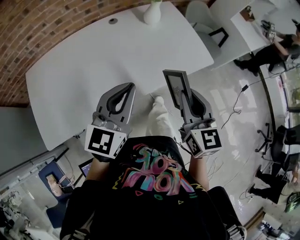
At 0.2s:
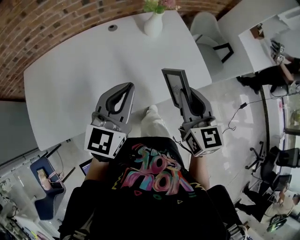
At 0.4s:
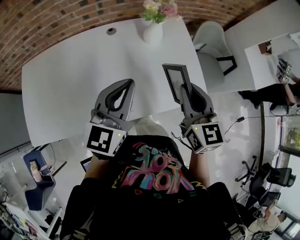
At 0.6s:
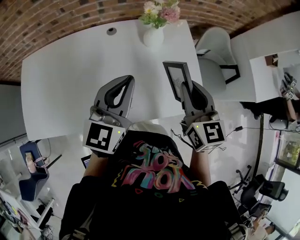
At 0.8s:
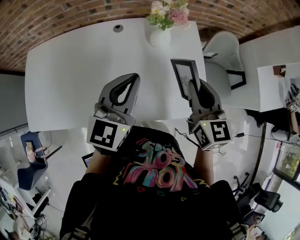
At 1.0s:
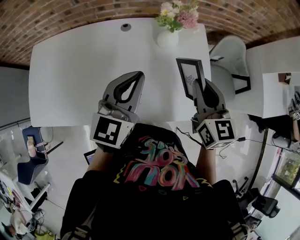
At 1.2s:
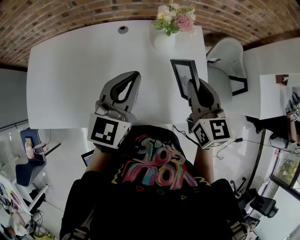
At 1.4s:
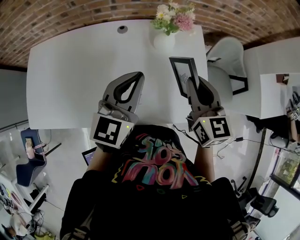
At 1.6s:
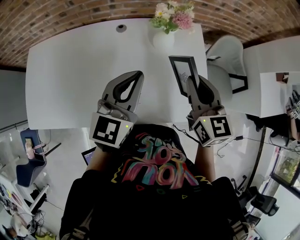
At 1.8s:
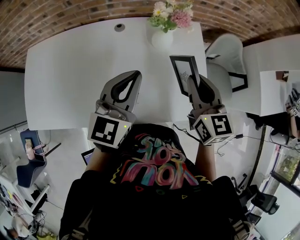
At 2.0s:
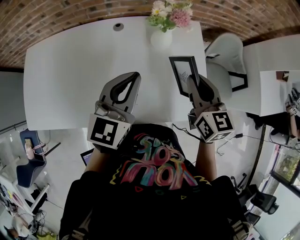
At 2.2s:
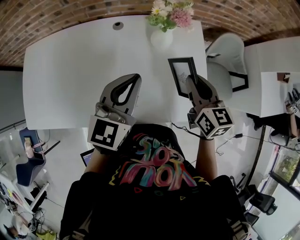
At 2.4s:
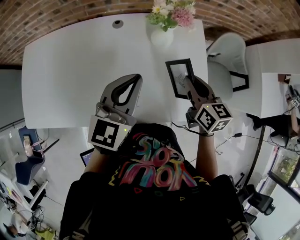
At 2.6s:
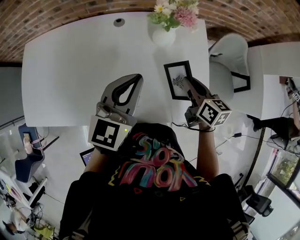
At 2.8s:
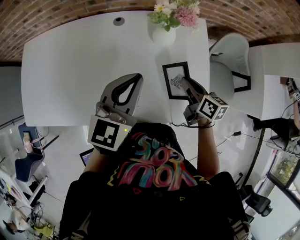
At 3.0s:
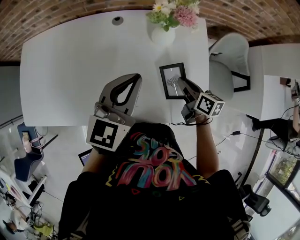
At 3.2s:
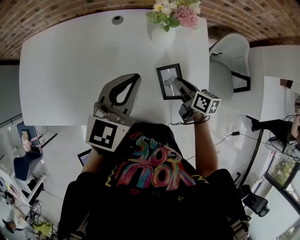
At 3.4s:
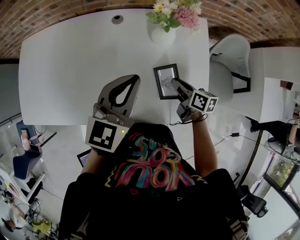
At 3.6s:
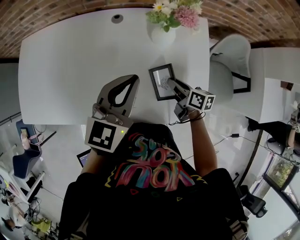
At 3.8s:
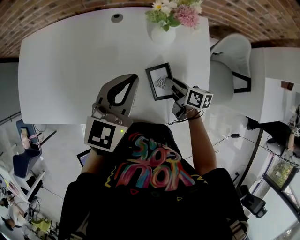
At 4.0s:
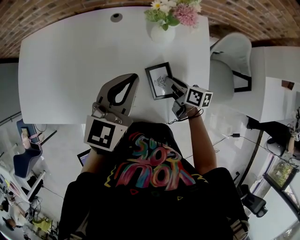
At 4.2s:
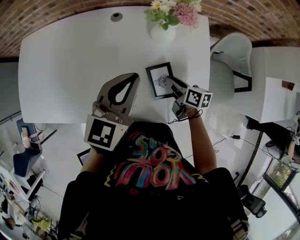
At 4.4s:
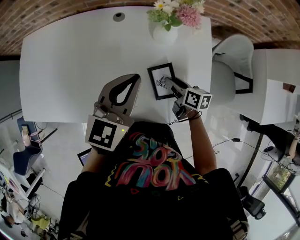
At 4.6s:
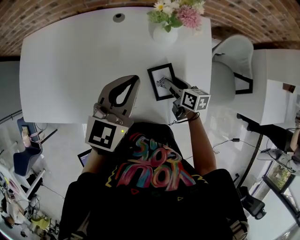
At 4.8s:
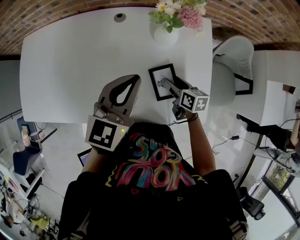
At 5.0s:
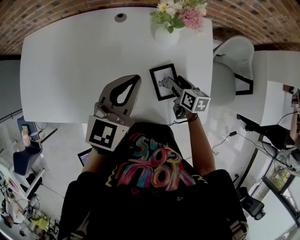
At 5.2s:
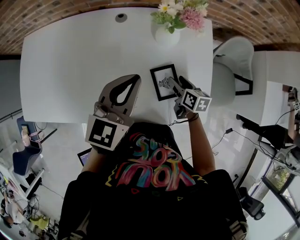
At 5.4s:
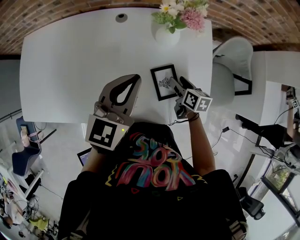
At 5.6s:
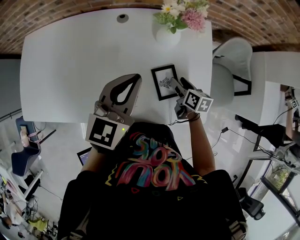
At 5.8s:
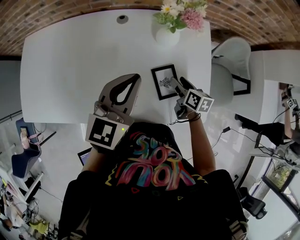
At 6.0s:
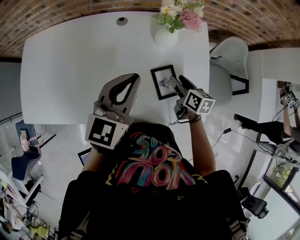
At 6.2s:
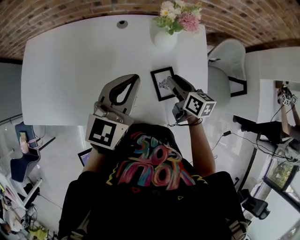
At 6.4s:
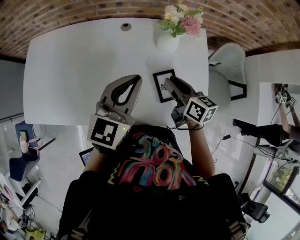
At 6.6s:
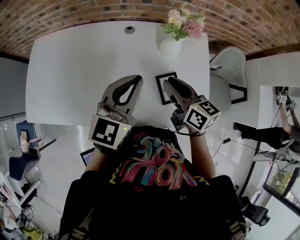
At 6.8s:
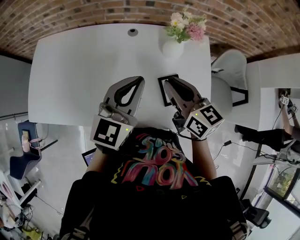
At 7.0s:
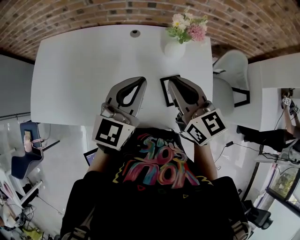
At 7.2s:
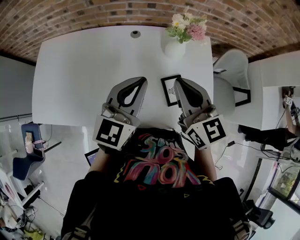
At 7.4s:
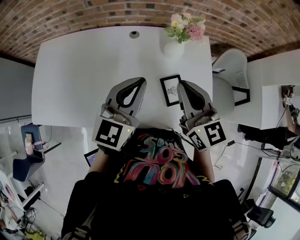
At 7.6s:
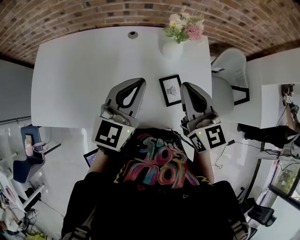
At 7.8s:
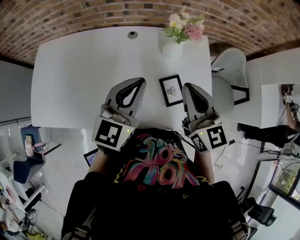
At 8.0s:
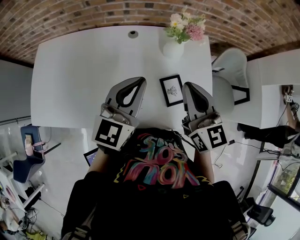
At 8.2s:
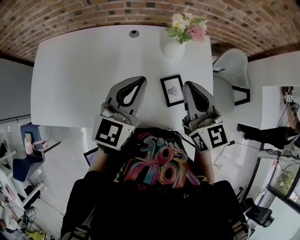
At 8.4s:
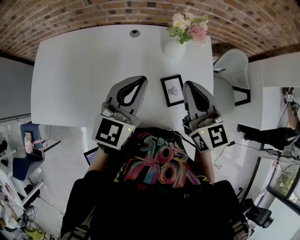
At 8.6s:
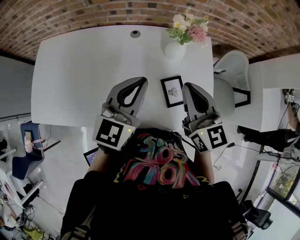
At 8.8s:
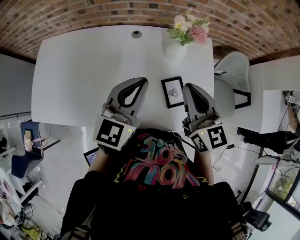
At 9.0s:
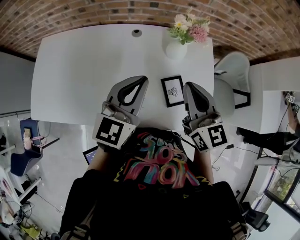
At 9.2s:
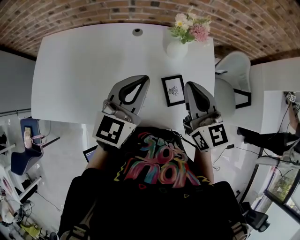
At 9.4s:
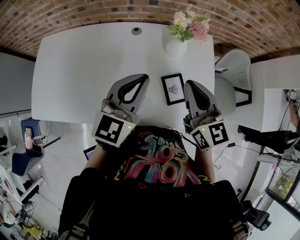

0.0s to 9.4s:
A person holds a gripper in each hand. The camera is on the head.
0.0s to 1.6s: The left gripper ends up approximately 35 cm from where it was, and rotates about 20 degrees. The right gripper ends up roughly 40 cm from where it was, and swivels some 30 degrees.
1.6s to 3.2s: The right gripper is displaced downward by about 20 cm, and changes its angle by roughly 50 degrees, while the left gripper moves some 5 cm.
3.2s to 4.8s: The right gripper moves downward, roughly 5 cm, and opens its fingers.
4.8s to 6.2s: The left gripper shifts by some 5 cm. The right gripper is displaced upward by approximately 10 cm.
6.2s to 7.8s: The right gripper goes approximately 20 cm upward, rotates roughly 40 degrees, and closes.
7.8s to 9.4s: Both grippers stay about where they are.

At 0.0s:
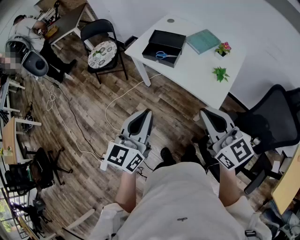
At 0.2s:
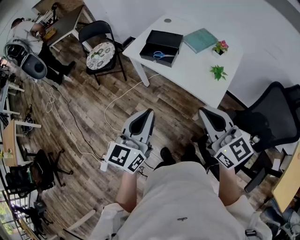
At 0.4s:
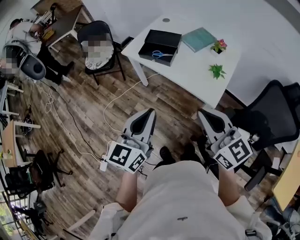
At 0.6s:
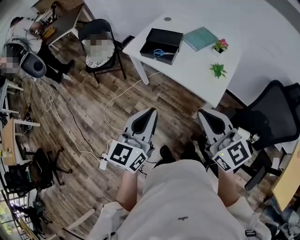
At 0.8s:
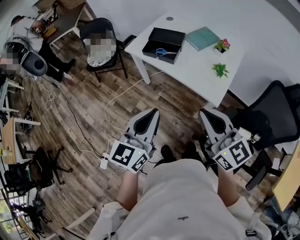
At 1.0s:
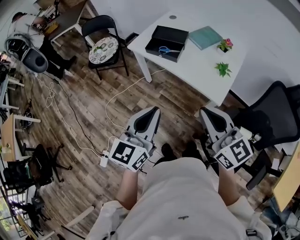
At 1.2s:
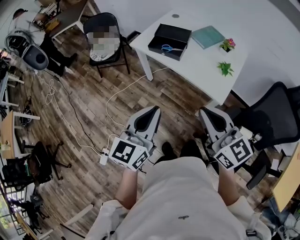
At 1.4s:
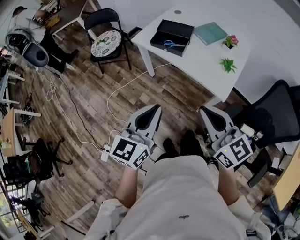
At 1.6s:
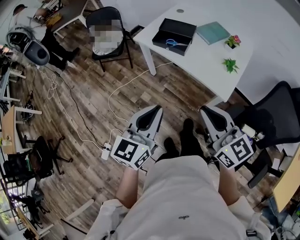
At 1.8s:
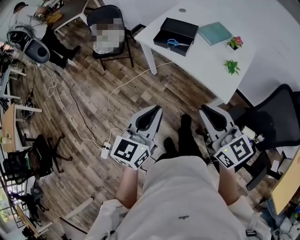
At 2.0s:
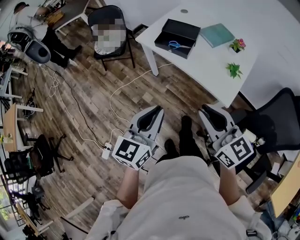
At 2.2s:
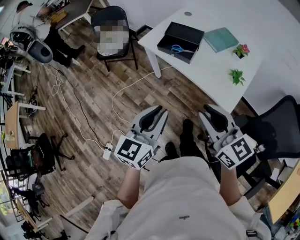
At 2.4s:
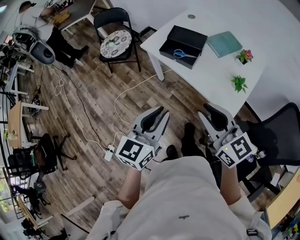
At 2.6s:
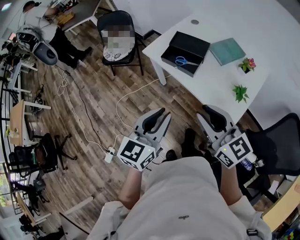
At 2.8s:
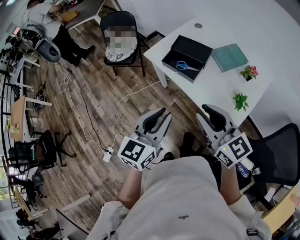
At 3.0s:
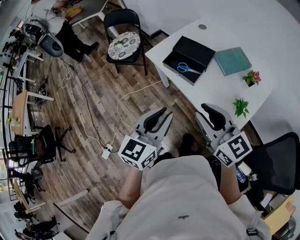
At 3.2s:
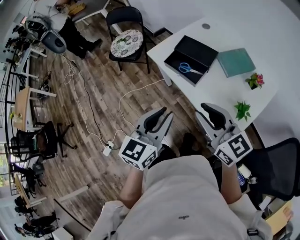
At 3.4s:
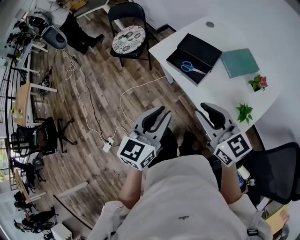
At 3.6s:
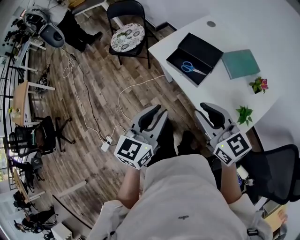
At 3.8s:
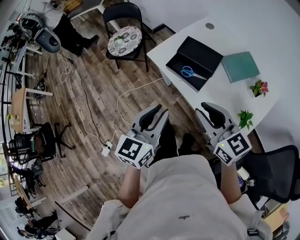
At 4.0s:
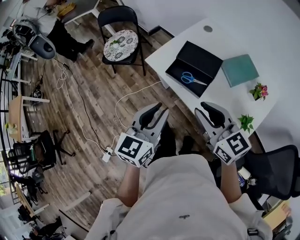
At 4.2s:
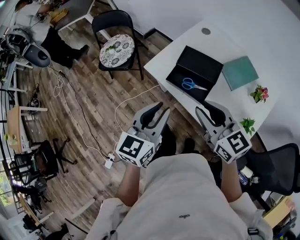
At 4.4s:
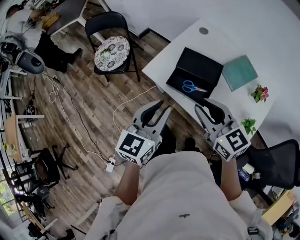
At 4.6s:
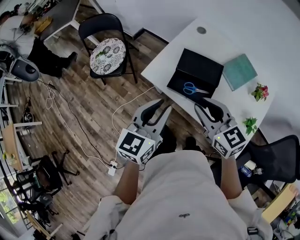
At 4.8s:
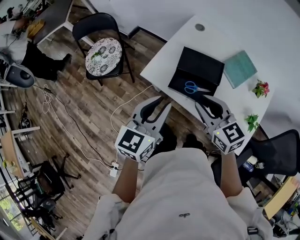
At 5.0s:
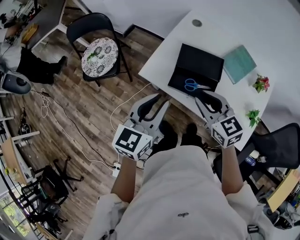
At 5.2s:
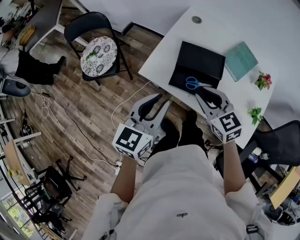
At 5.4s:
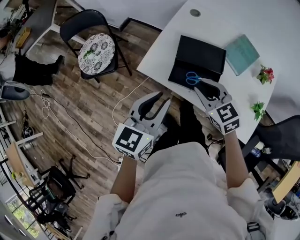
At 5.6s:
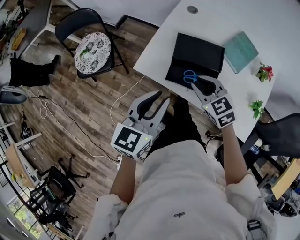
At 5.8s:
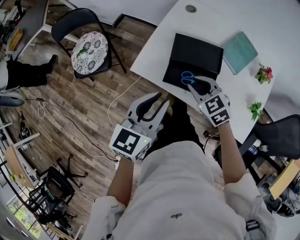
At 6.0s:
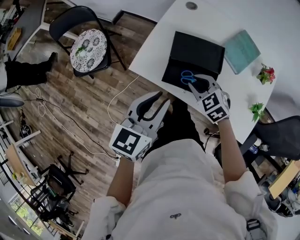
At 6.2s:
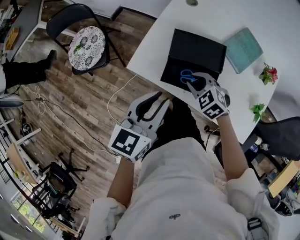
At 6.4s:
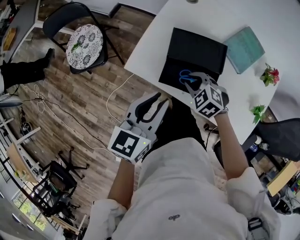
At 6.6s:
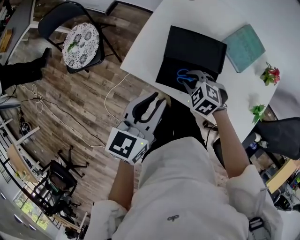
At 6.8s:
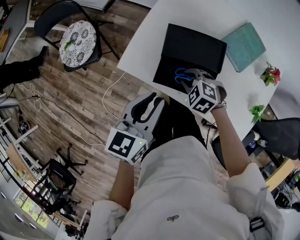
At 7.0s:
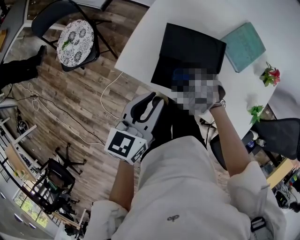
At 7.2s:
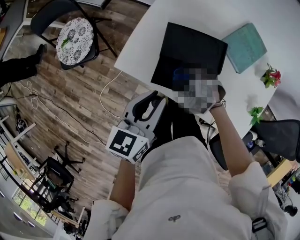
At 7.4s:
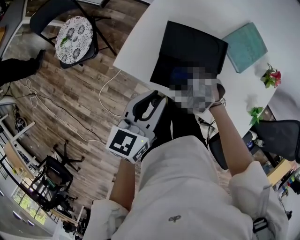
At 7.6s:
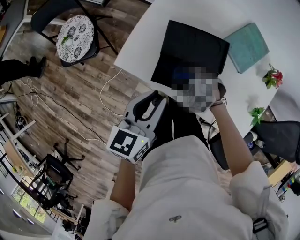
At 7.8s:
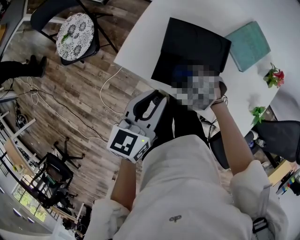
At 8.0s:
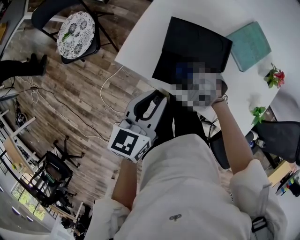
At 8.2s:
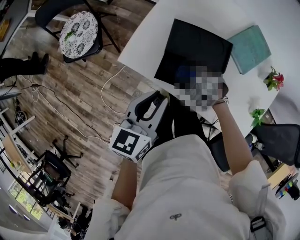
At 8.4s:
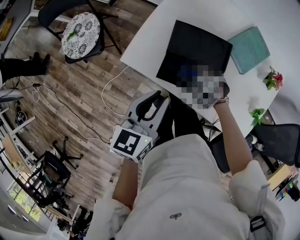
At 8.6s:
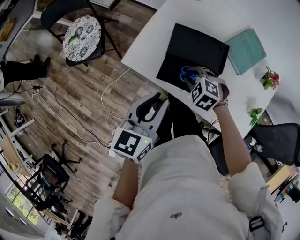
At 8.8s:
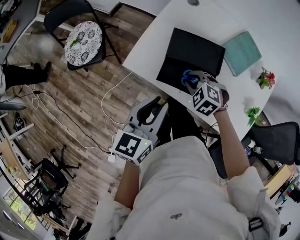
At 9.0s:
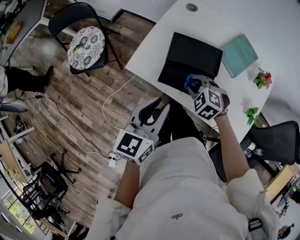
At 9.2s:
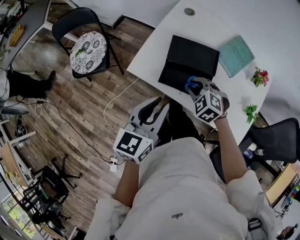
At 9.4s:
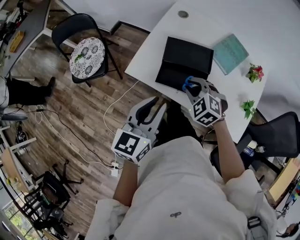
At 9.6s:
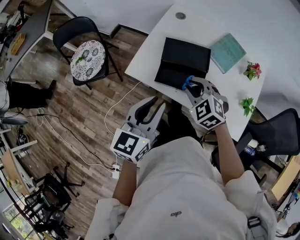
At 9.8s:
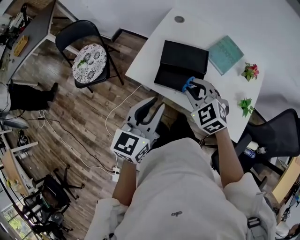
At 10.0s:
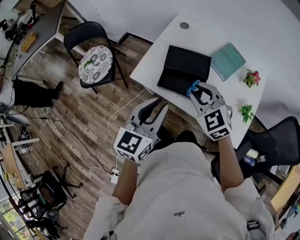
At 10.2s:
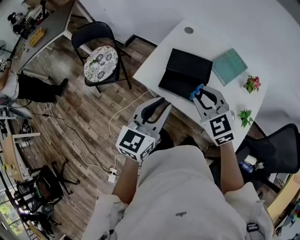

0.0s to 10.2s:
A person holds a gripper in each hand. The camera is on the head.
0.0s to 1.4s: The right gripper travels to the left by approximately 5 cm.
1.4s to 3.0s: The left gripper heads forward and to the right, covering approximately 20 cm. Meanwhile the right gripper shifts approximately 20 cm forward, and opens its fingers.
3.0s to 4.4s: The two grippers go approximately 20 cm forward.
4.4s to 5.8s: The left gripper travels forward and downward by approximately 10 cm, while the right gripper heads downward and forward, covering some 20 cm, and rotates approximately 30 degrees.
5.8s to 7.2s: The left gripper goes about 5 cm downward; the right gripper moves downward, some 15 cm, and turns by about 30 degrees.
7.2s to 8.8s: The right gripper heads upward, covering approximately 5 cm; the left gripper shifts by approximately 5 cm.
8.8s to 10.2s: The right gripper moves upward, approximately 20 cm, and angles its fingers upward, by some 40 degrees; the left gripper moves upward and backward, approximately 10 cm.

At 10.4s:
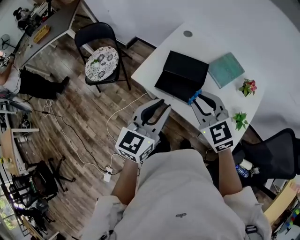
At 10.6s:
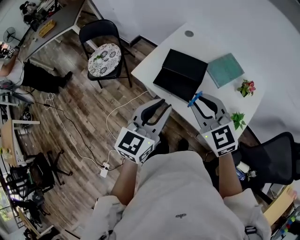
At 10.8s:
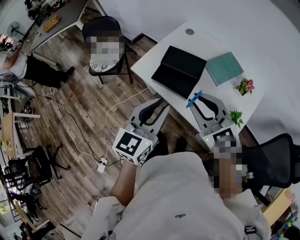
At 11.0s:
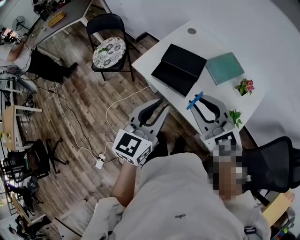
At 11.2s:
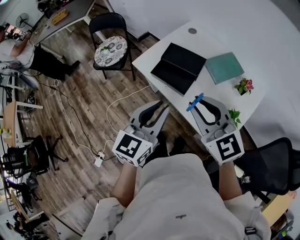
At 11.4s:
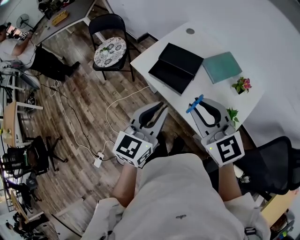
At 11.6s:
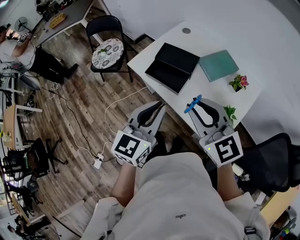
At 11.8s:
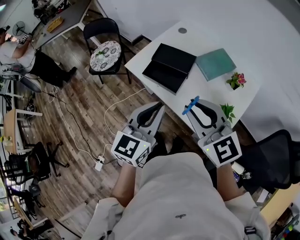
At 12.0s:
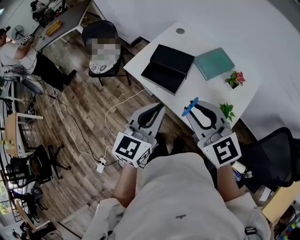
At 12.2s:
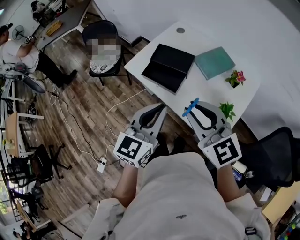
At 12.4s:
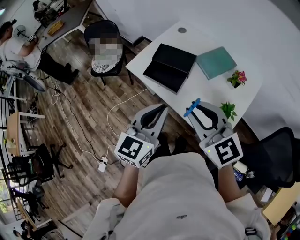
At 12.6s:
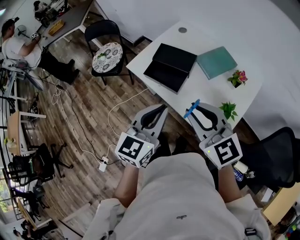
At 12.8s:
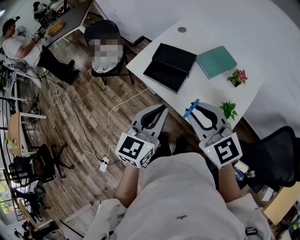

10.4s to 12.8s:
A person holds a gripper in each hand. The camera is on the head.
10.4s to 11.6s: The right gripper shifts approximately 15 cm backward, to the right and upward, while the left gripper shifts roughly 15 cm backward and to the right.
11.6s to 12.8s: The grippers move only a little.

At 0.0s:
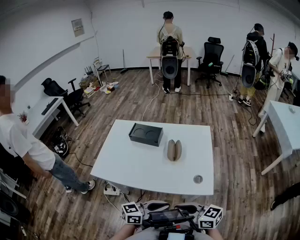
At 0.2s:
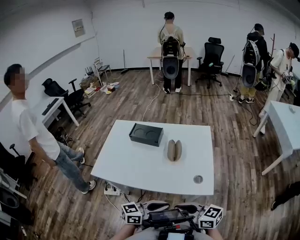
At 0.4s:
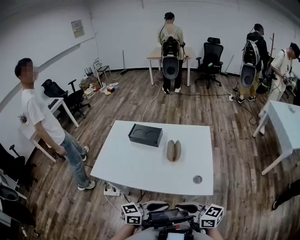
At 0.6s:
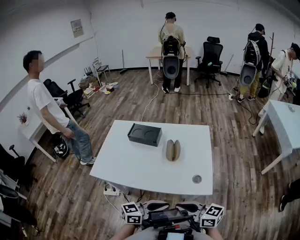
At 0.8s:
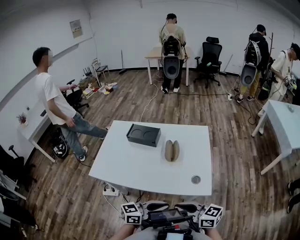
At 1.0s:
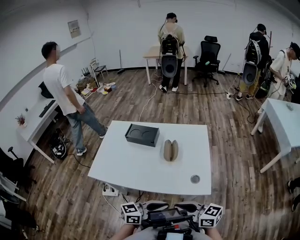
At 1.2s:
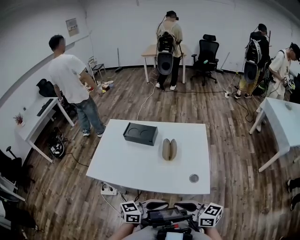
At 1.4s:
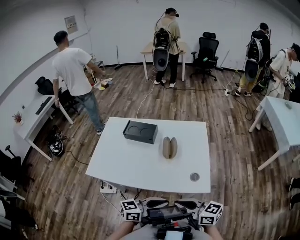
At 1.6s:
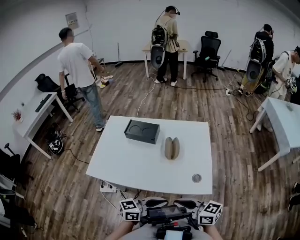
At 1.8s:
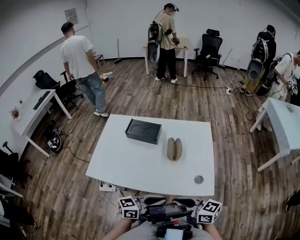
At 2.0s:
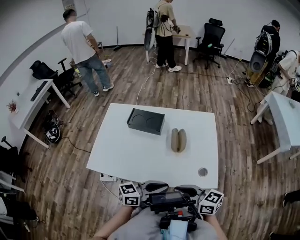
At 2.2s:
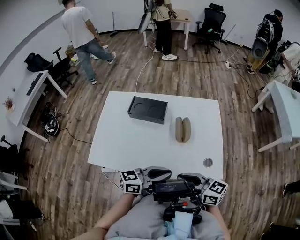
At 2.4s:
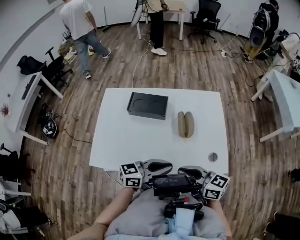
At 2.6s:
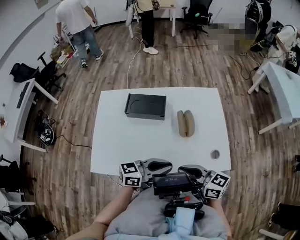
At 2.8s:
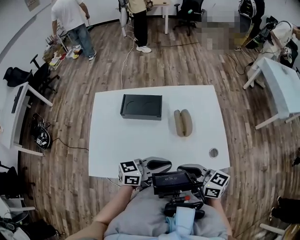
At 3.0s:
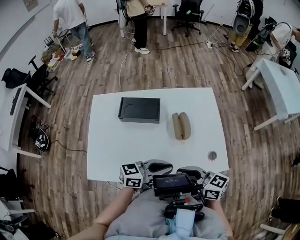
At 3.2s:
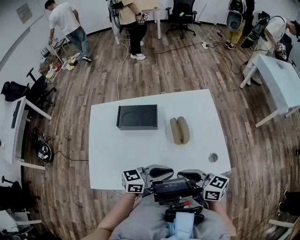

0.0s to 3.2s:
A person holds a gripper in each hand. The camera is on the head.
0.0s to 1.6s: The grippers stay close to where they were, moving slightly.
1.6s to 3.2s: The left gripper shifts by approximately 15 cm, while the right gripper changes place by about 15 cm.
